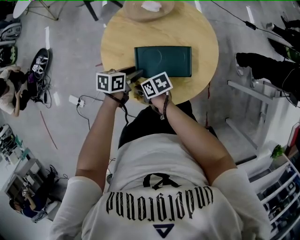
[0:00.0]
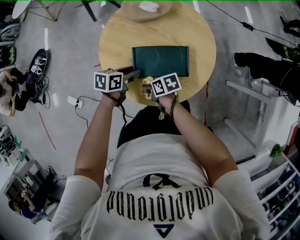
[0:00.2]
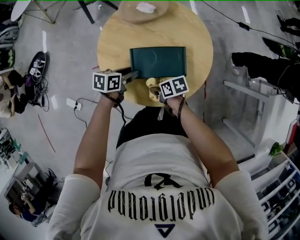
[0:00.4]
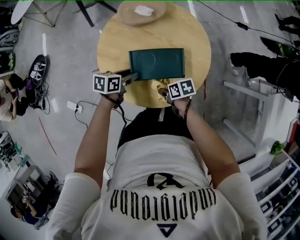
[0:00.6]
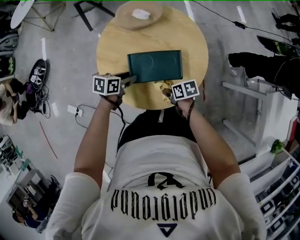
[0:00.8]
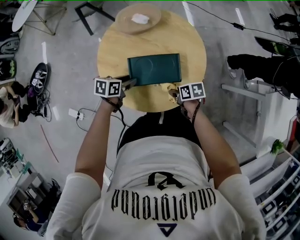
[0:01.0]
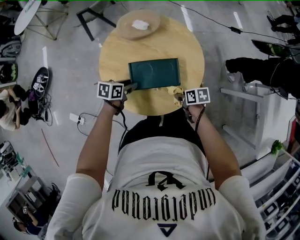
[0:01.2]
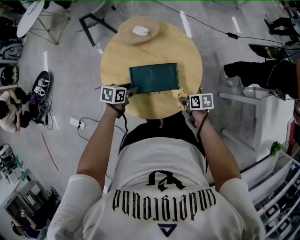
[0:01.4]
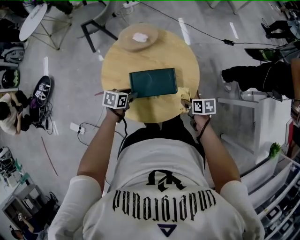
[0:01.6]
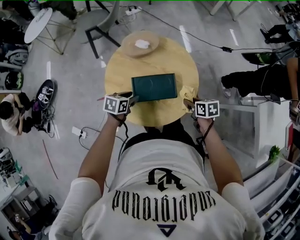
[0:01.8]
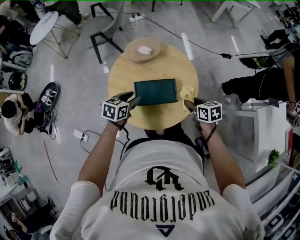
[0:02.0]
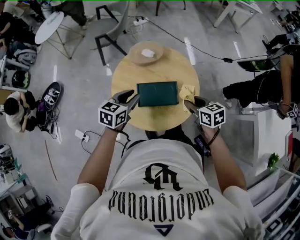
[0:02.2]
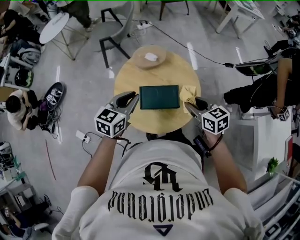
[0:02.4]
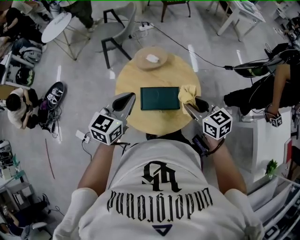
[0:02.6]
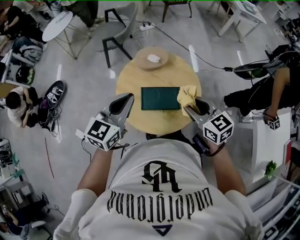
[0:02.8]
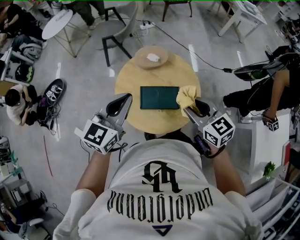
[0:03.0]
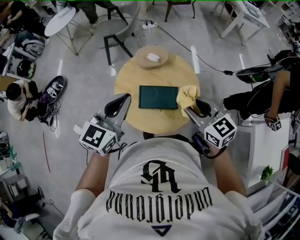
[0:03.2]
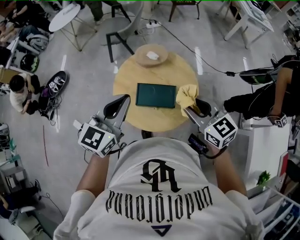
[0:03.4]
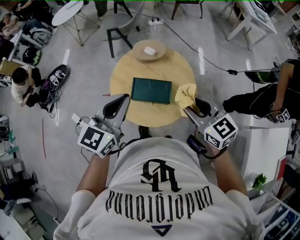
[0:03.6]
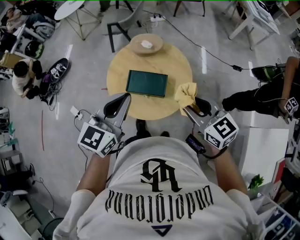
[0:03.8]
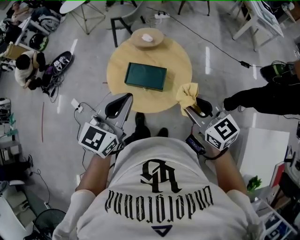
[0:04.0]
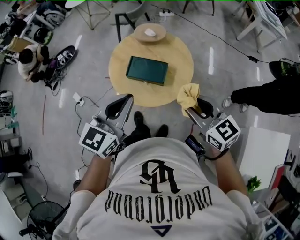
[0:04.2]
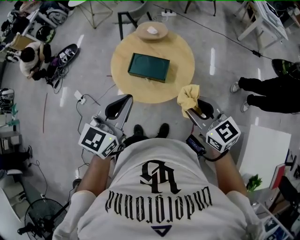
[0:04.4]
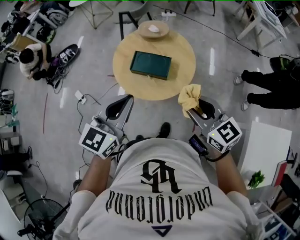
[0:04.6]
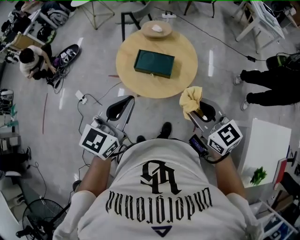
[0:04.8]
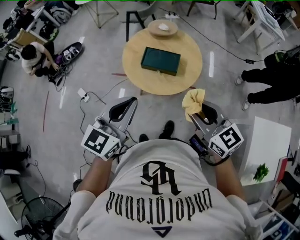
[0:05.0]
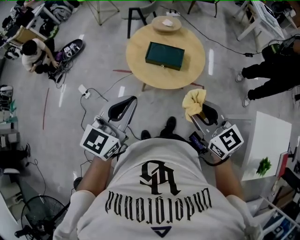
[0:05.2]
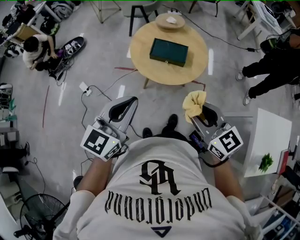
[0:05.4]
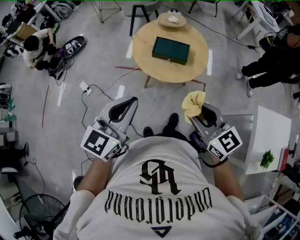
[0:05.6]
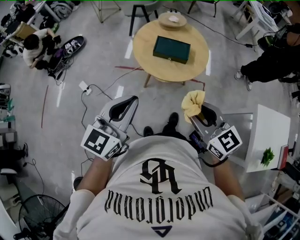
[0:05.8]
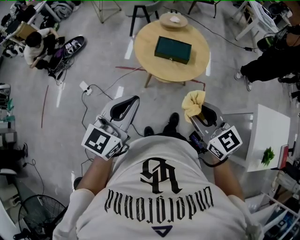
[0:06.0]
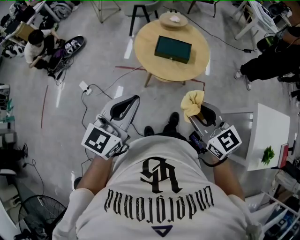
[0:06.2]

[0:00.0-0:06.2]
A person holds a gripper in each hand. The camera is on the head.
0:00.0 to 0:01.6: The right gripper shifts by roughly 30 cm, and changes its angle by about 30 degrees.
0:01.6 to 0:03.2: Both grippers travel together upward, approximately 40 cm. The left gripper angles its fingers upward, by some 40 degrees, and closes up. Meanwhile the right gripper twists approximately 50 degrees counterclockwise, seen from behind.
0:03.2 to 0:04.6: The grippers both shift backward by roughly 25 cm.
0:04.6 to 0:06.2: The grippers both shift to the left and backward by roughly 25 cm.

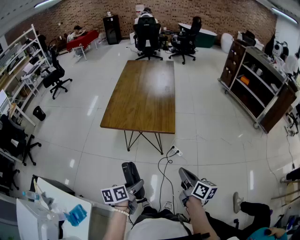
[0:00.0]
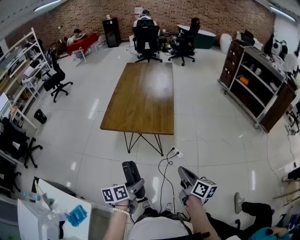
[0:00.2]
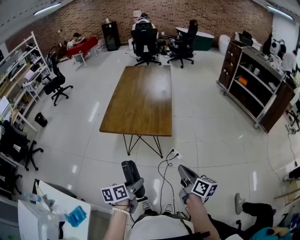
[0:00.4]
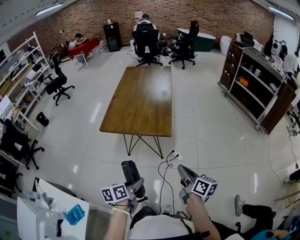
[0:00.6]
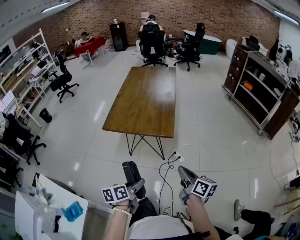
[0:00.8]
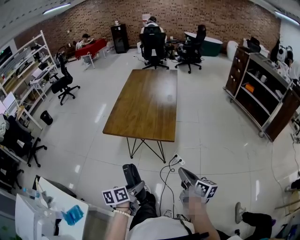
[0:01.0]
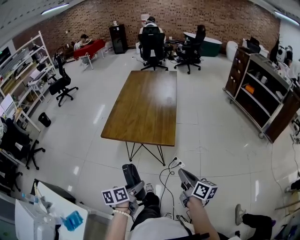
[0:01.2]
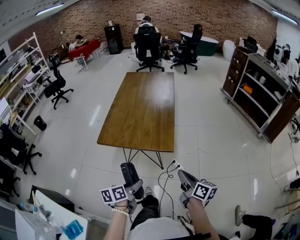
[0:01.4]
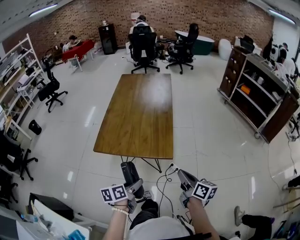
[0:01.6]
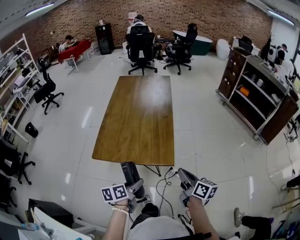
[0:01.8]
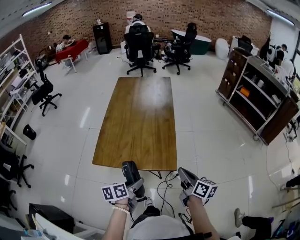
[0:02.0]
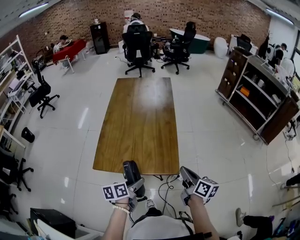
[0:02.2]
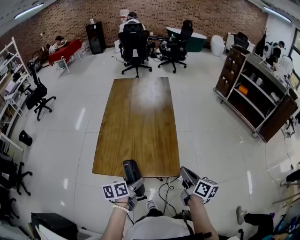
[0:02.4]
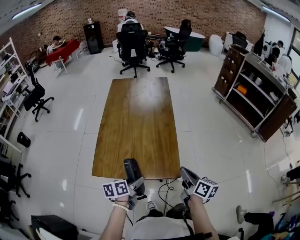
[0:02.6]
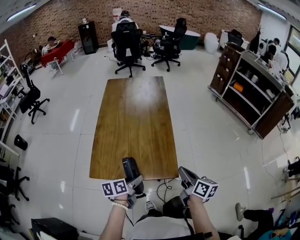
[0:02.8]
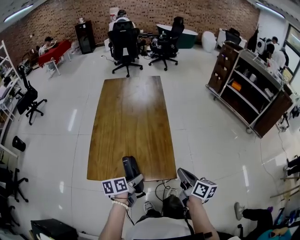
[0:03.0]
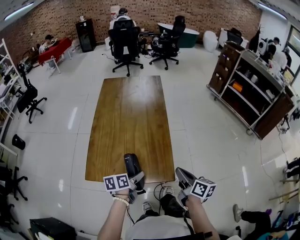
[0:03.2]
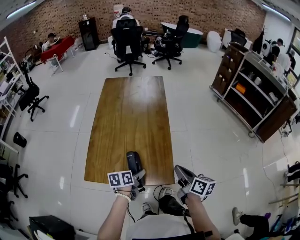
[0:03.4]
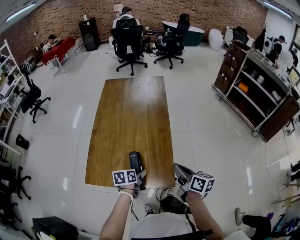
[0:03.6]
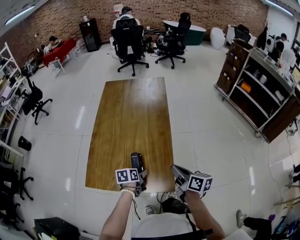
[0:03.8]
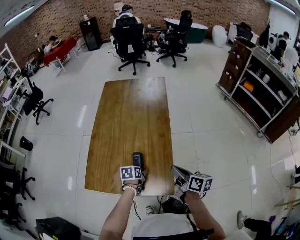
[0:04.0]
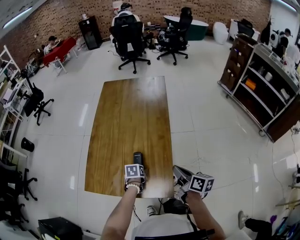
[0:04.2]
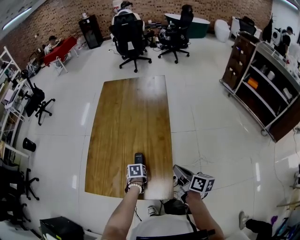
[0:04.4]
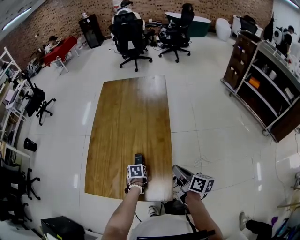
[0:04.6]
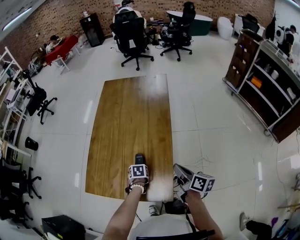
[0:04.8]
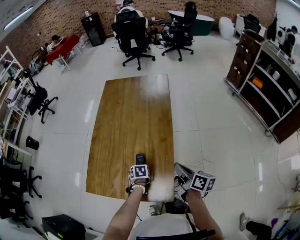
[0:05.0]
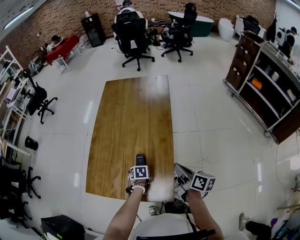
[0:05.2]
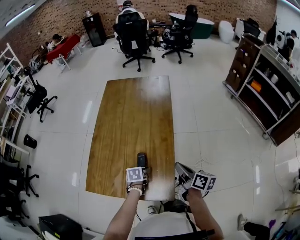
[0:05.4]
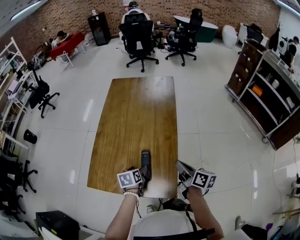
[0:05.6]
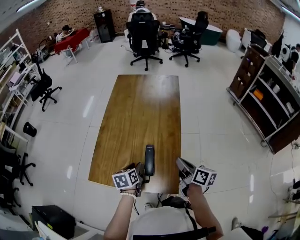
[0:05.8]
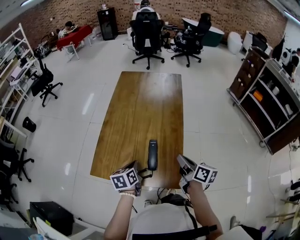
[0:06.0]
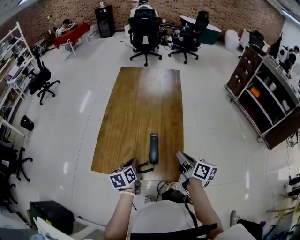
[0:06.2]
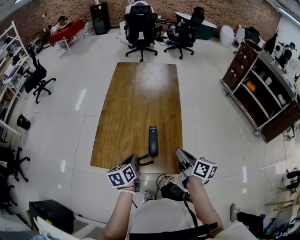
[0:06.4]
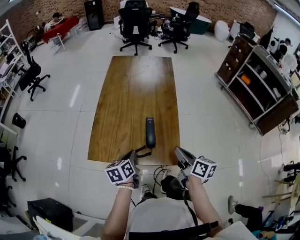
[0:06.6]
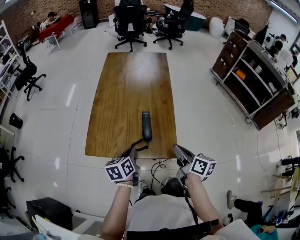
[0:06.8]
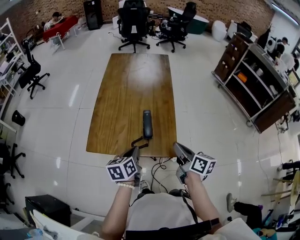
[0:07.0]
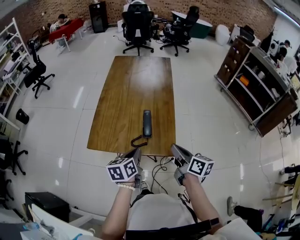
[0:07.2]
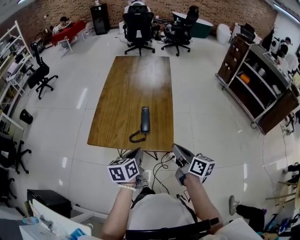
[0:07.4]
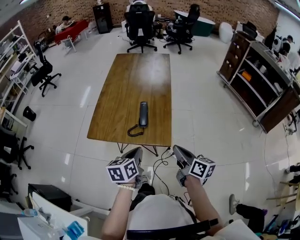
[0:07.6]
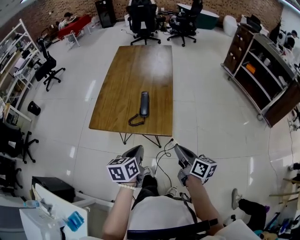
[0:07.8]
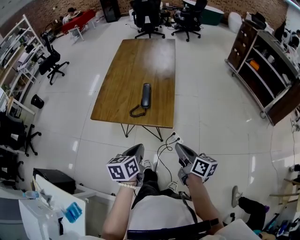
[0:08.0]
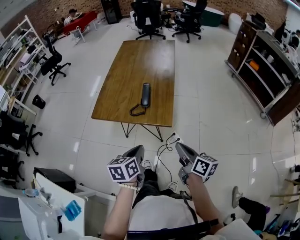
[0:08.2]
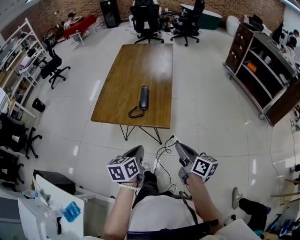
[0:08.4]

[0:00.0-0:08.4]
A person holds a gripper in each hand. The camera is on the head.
0:00.0 to 0:01.4: Both grippers move forward, about 10 cm.
0:01.4 to 0:02.8: The two grippers go roughly 20 cm forward.
0:02.8 to 0:04.2: The left gripper travels forward and downward by about 20 cm, and tilts its fingers some 40 degrees downward. Meanwhile the right gripper heads forward, covering some 15 cm.
0:04.2 to 0:05.6: The left gripper goes roughly 10 cm upward.
0:05.6 to 0:07.0: The right gripper is displaced backward and to the left by about 15 cm, while the left gripper travels backward and upward by approximately 20 cm, changes its angle by roughly 20 degrees, and closes.
0:07.0 to 0:08.4: Both grippers move backward, about 20 cm.

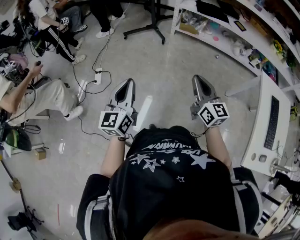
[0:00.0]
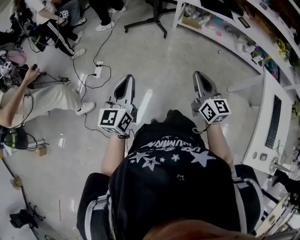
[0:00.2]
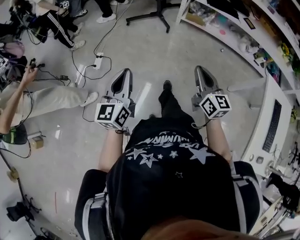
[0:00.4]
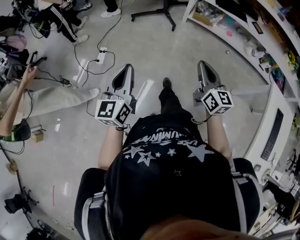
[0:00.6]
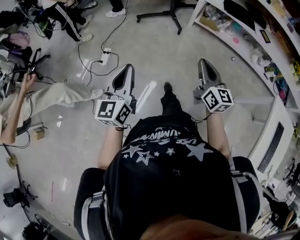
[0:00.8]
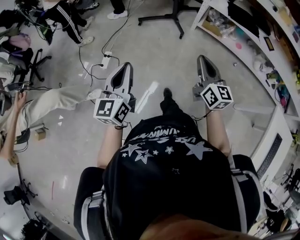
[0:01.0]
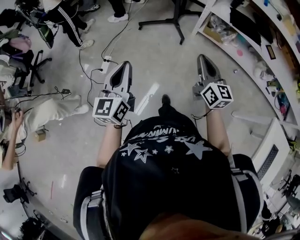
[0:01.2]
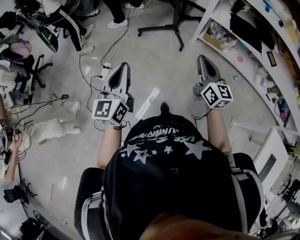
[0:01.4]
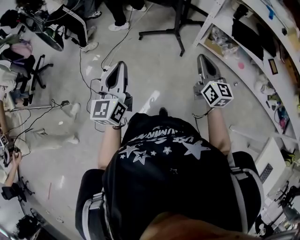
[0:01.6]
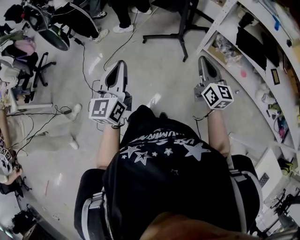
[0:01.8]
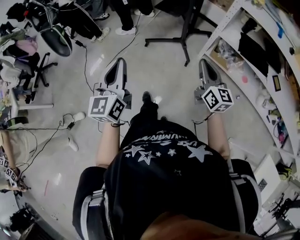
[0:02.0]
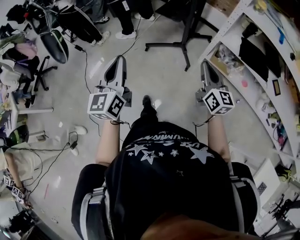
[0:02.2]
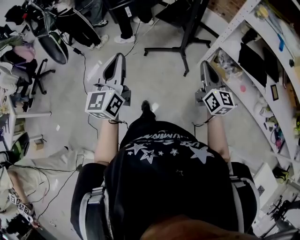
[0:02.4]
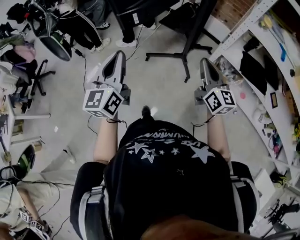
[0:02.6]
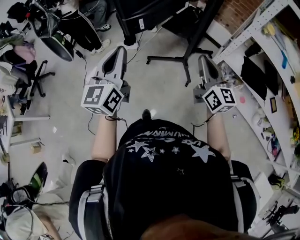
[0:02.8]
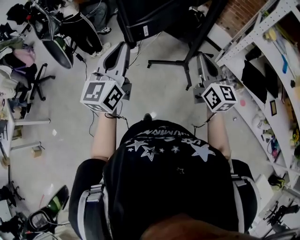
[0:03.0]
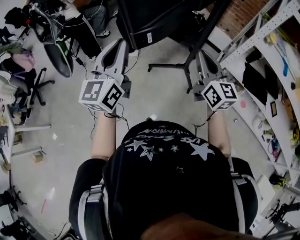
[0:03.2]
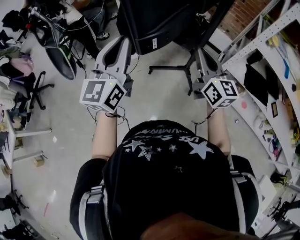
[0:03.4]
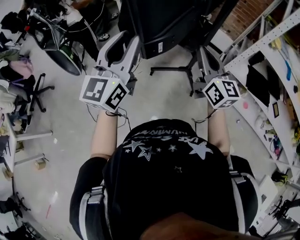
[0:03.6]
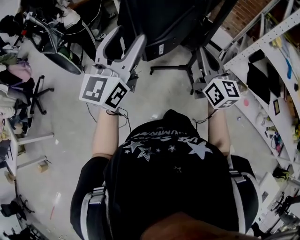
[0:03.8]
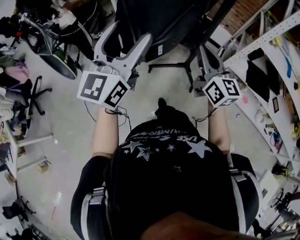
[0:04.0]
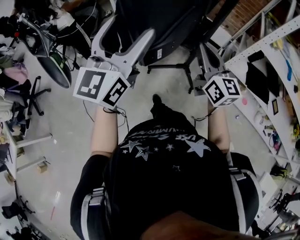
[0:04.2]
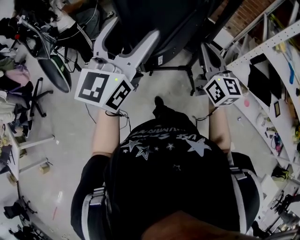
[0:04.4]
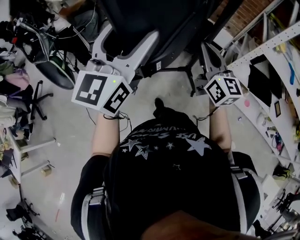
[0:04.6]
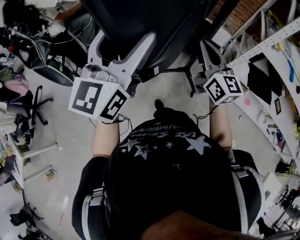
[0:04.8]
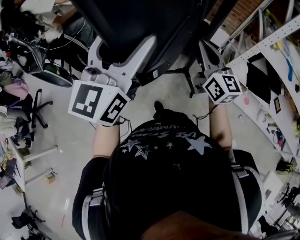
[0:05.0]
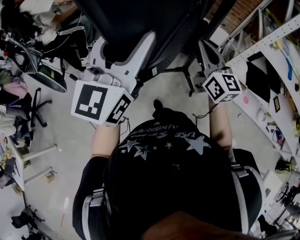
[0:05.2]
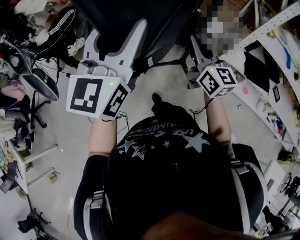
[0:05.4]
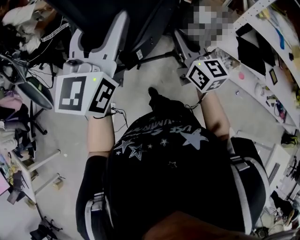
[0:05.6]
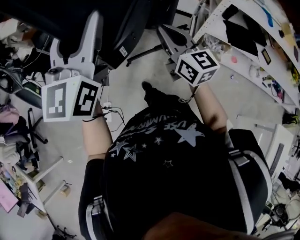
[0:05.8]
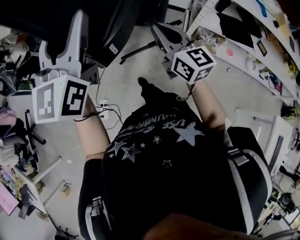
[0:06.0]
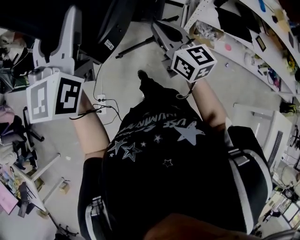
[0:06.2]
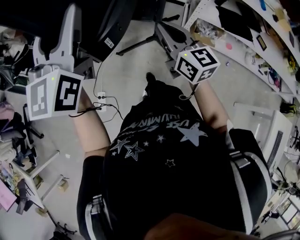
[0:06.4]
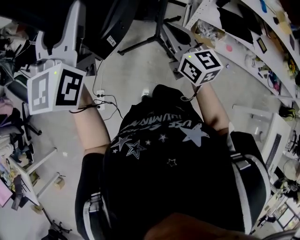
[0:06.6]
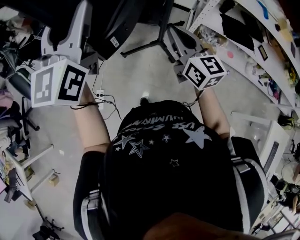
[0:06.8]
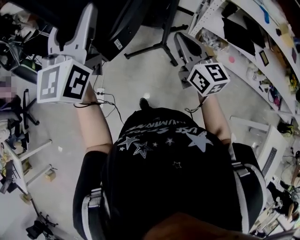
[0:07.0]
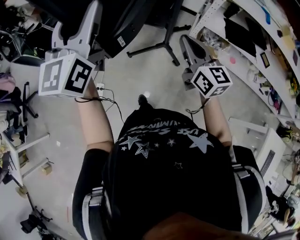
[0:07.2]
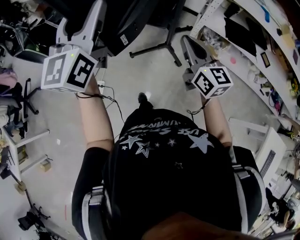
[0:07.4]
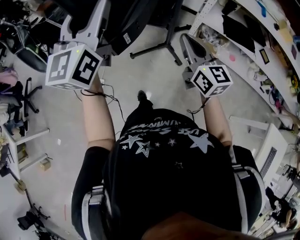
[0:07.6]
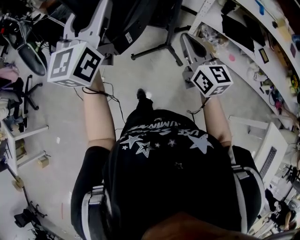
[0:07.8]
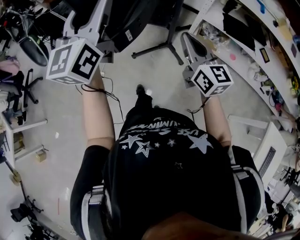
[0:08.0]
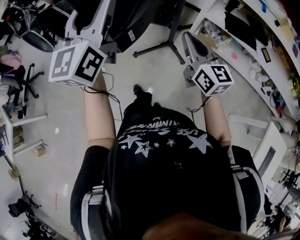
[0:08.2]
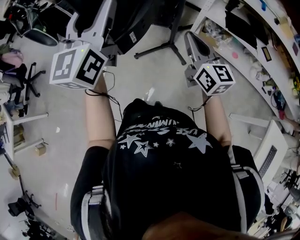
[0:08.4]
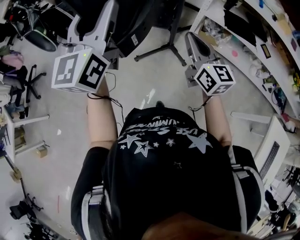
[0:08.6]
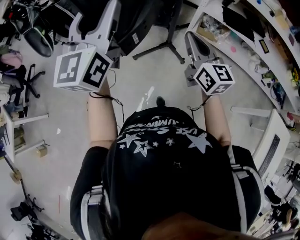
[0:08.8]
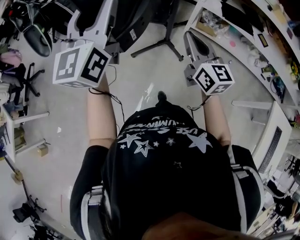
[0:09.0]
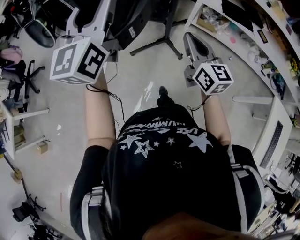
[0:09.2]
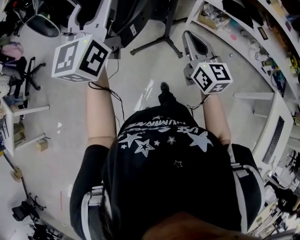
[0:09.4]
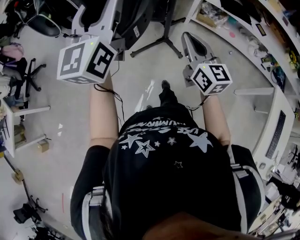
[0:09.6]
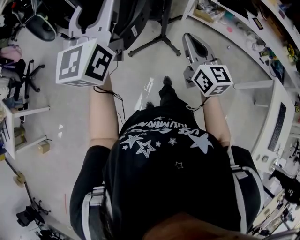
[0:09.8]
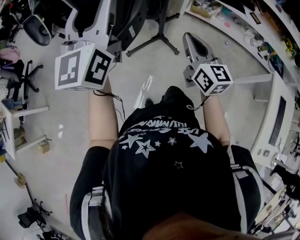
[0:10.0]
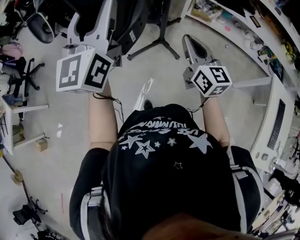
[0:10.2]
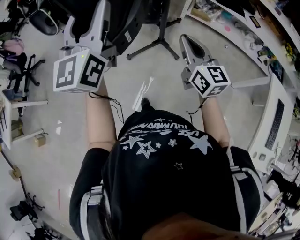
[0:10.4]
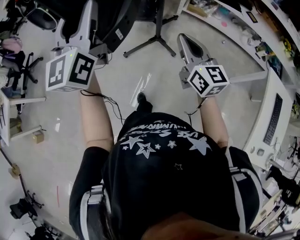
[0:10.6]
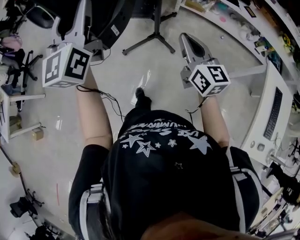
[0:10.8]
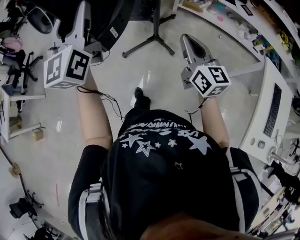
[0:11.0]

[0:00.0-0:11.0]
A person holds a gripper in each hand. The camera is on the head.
0:00.0 to 0:01.6: The grippers both shift forward by some 40 cm.
0:01.6 to 0:03.2: The left gripper travels forward and upward by some 35 cm, while the right gripper travels forward, to the left and upward by roughly 35 cm.
0:03.2 to 0:04.8: The right gripper travels forward and to the left by some 15 cm. Meanwhile the left gripper shifts approximately 15 cm forward and upward, and opens its fingers.
0:04.8 to 0:06.2: The left gripper heads backward, covering approximately 5 cm, and closes. Meanwhile the right gripper is displaced backward by roughly 10 cm.
0:06.2 to 0:07.8: The grippers both shift backward and to the right by approximately 20 cm.
0:07.8 to 0:09.4: Both grippers move backward, roughly 25 cm.
0:09.4 to 0:11.0: The two grippers go approximately 25 cm backward.
